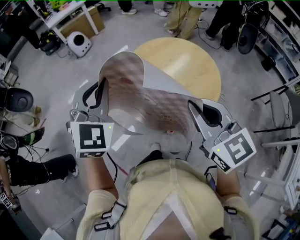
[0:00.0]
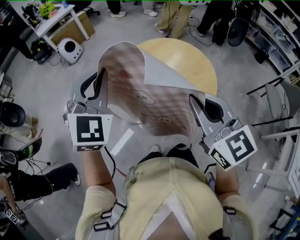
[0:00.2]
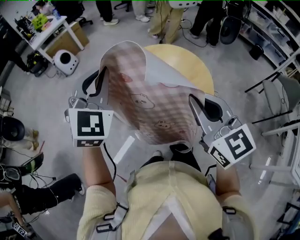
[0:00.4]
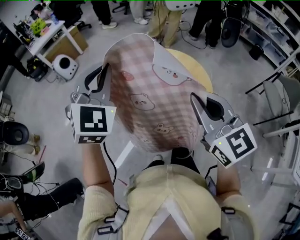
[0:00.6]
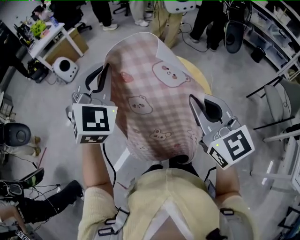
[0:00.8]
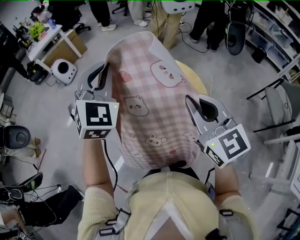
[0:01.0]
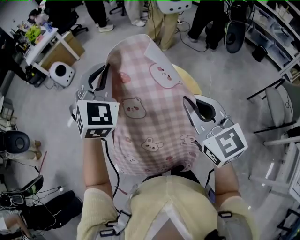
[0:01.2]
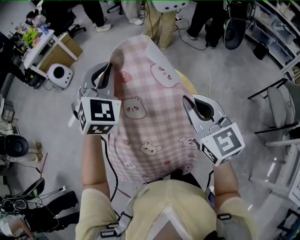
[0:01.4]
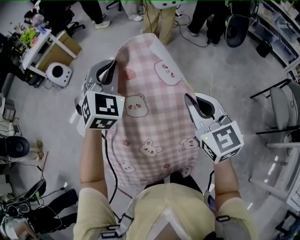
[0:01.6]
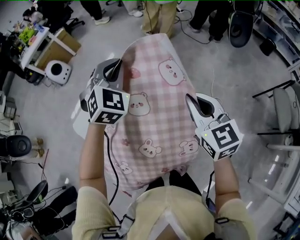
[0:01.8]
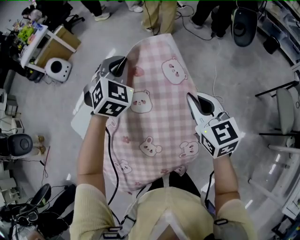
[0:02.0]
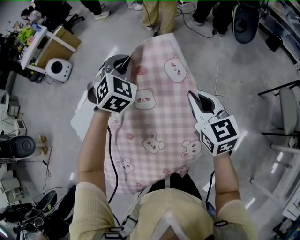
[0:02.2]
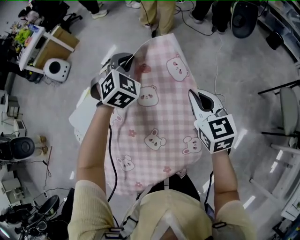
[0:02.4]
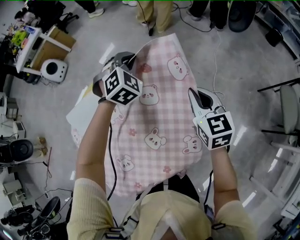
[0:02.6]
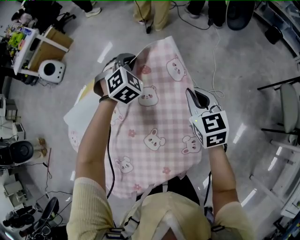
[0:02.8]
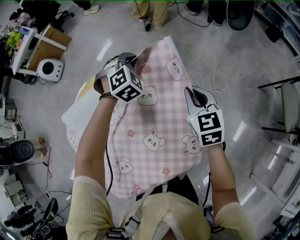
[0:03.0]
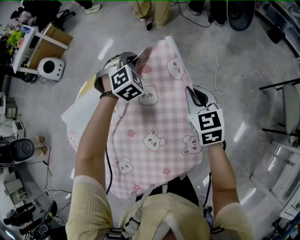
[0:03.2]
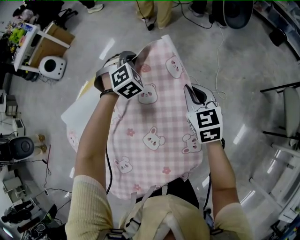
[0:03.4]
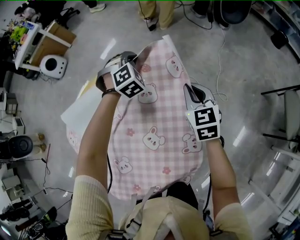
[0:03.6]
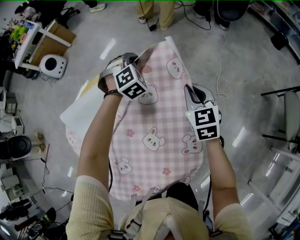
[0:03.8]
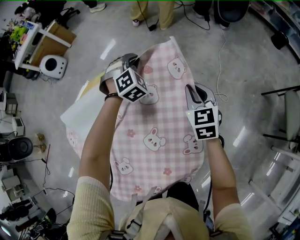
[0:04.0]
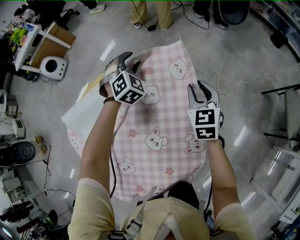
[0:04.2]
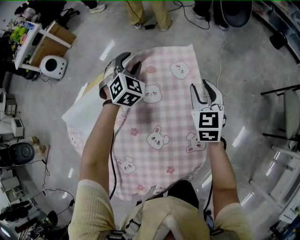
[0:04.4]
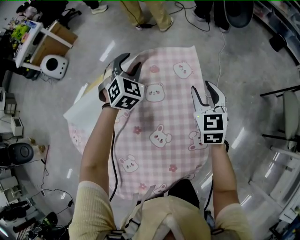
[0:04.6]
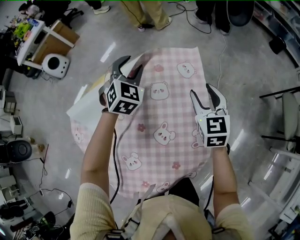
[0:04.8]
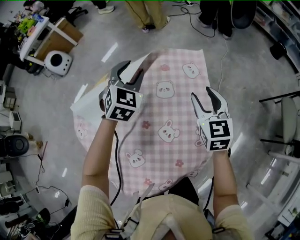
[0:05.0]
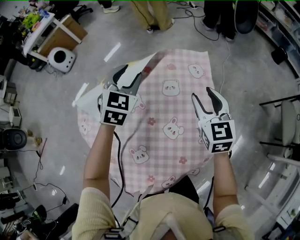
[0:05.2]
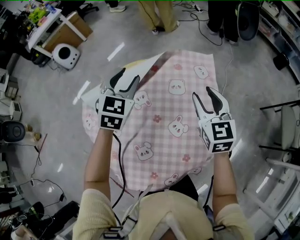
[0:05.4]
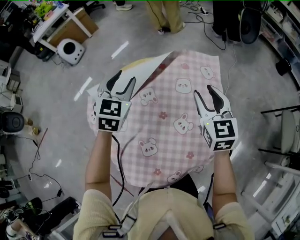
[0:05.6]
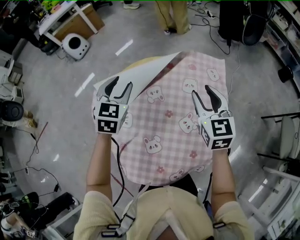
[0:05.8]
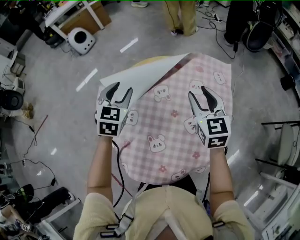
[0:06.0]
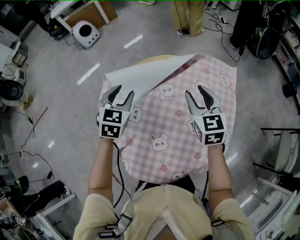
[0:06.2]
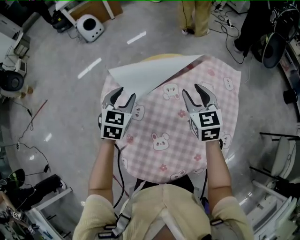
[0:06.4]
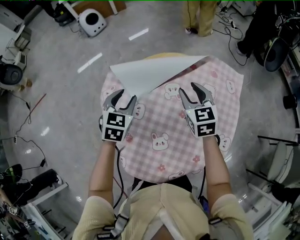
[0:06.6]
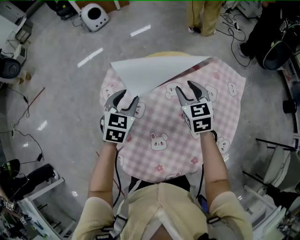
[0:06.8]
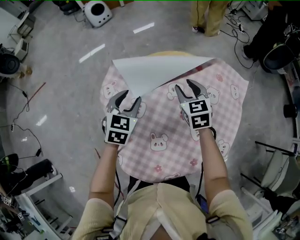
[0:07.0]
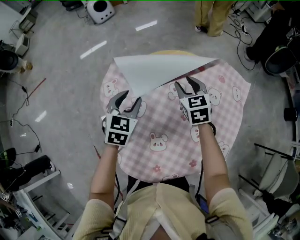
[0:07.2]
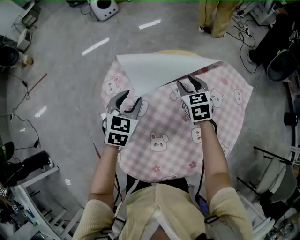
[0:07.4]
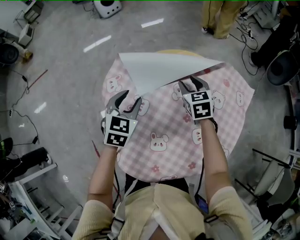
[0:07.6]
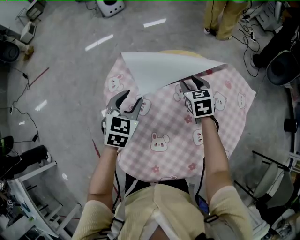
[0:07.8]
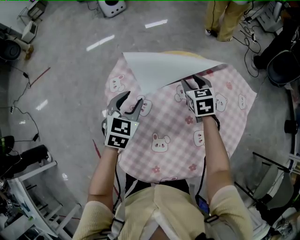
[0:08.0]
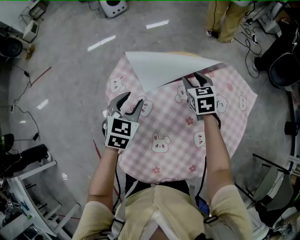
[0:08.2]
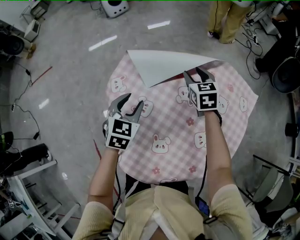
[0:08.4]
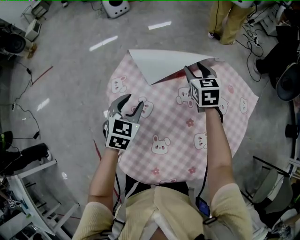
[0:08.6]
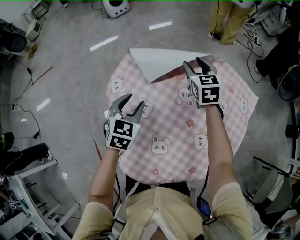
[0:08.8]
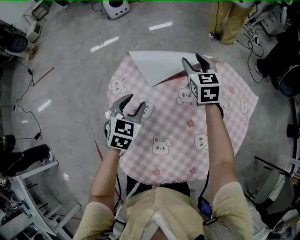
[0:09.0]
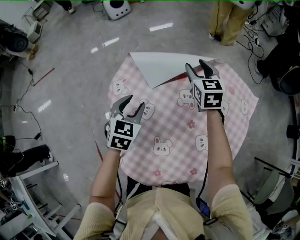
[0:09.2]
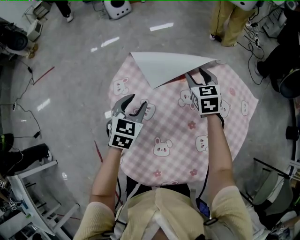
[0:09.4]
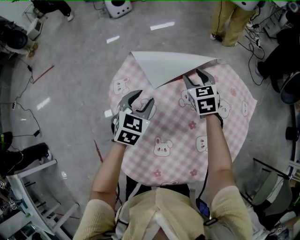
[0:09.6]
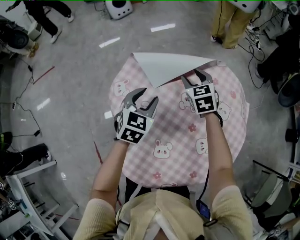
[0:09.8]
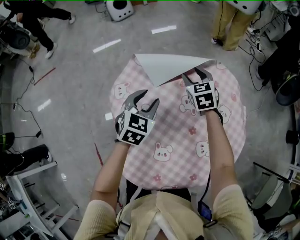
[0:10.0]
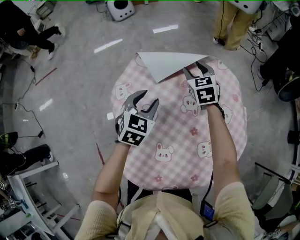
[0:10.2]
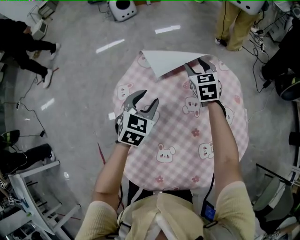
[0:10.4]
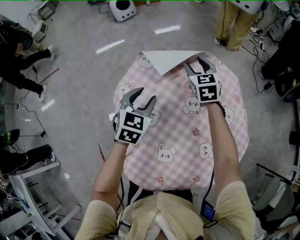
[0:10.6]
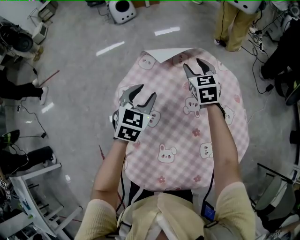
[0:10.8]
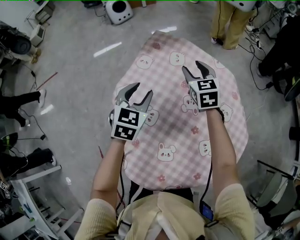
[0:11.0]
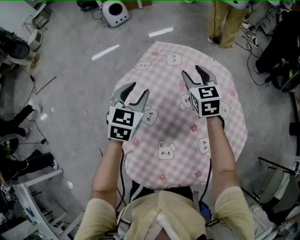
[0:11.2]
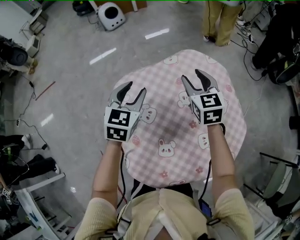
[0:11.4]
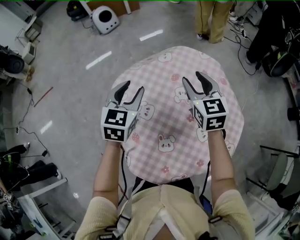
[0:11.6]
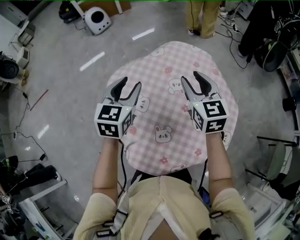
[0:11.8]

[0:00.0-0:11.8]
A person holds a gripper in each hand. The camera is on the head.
0.0 to 1.4 s: The right gripper moves to the right and forward, roughly 30 cm. Meanwhile the left gripper is displaced forward and to the right by approximately 40 cm.
1.4 to 3.0 s: Both grippers travel together downward, to the right and forward, roughly 35 cm. The left gripper angles its fingers downward, by some 30 degrees, while the right gripper rotates some 20 degrees.
3.0 to 4.4 s: The right gripper opens its fingers. The left gripper opens its fingers.
4.4 to 6.0 s: The right gripper moves to the left and upward, about 25 cm, and changes its angle by about 20 degrees. The left gripper heads to the left and backward, covering about 35 cm, and swivels roughly 40 degrees.
6.0 to 7.4 s: The left gripper moves downward and backward, roughly 10 cm. The right gripper goes some 20 cm downward, to the left and forward, and turns by about 30 degrees.
7.4 to 8.8 s: The right gripper is displaced forward by about 10 cm.
8.8 to 10.4 s: The left gripper moves roughly 5 cm. The right gripper ends up about 5 cm from where it was.
10.4 to 11.8 s: The right gripper moves backward and upward, about 25 cm, while the left gripper is displaced upward by approximately 10 cm.

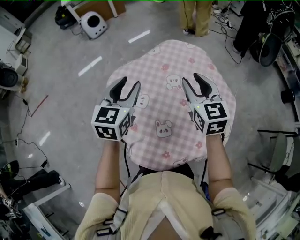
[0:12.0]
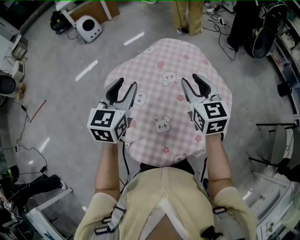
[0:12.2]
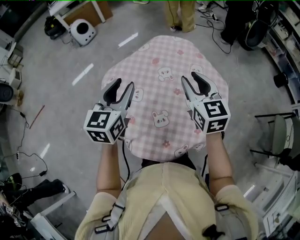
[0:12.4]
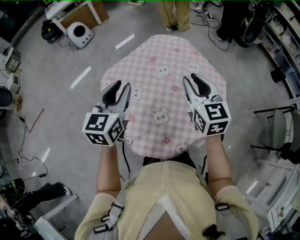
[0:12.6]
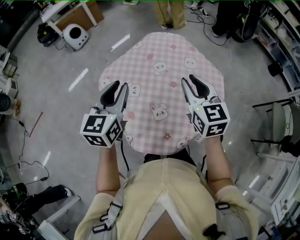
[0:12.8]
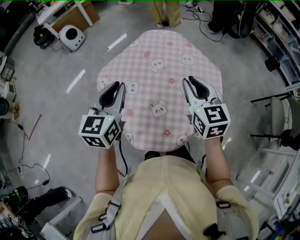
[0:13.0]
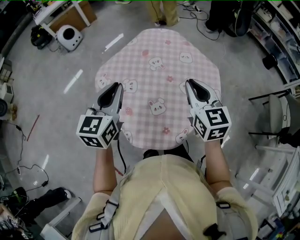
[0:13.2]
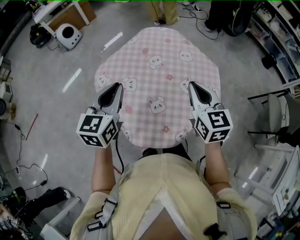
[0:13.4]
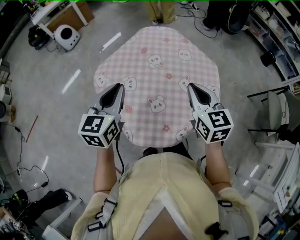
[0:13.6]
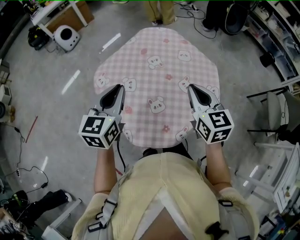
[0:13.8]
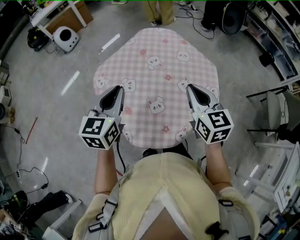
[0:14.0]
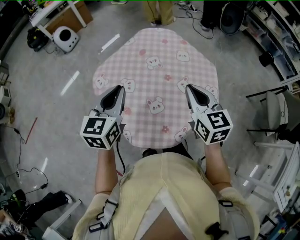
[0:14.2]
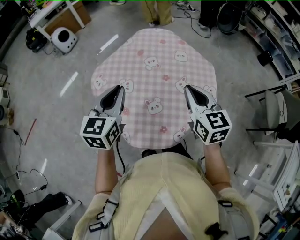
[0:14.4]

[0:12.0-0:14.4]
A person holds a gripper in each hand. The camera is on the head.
12.0 to 13.2 s: The left gripper is displaced backward by roughly 10 cm, and closes its fingers. The right gripper goes approximately 15 cm backward, and closes.
13.2 to 14.4 s: The grippers stay close to where they were, moving slightly.

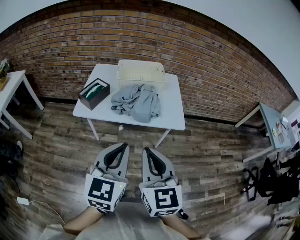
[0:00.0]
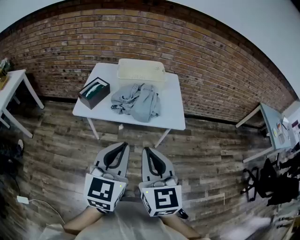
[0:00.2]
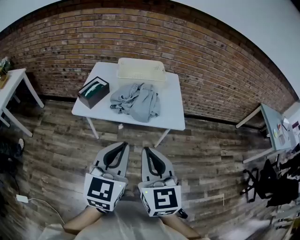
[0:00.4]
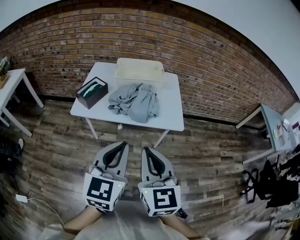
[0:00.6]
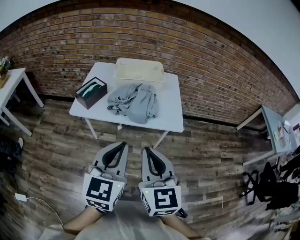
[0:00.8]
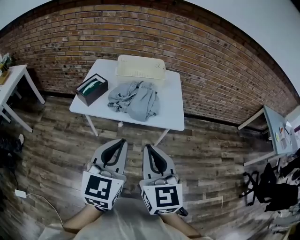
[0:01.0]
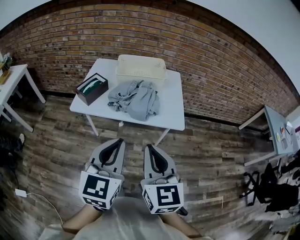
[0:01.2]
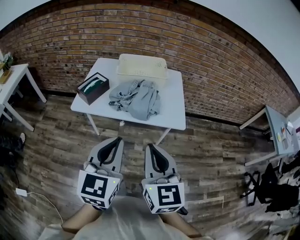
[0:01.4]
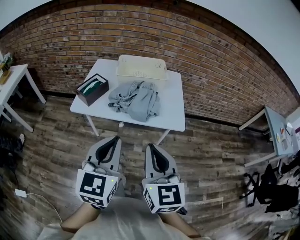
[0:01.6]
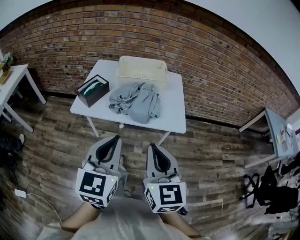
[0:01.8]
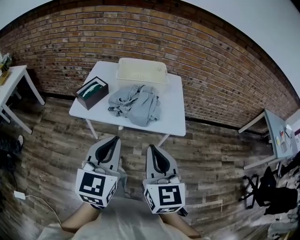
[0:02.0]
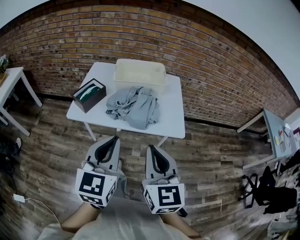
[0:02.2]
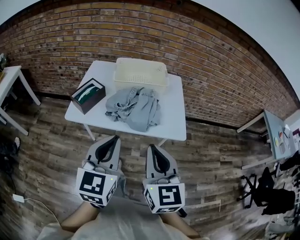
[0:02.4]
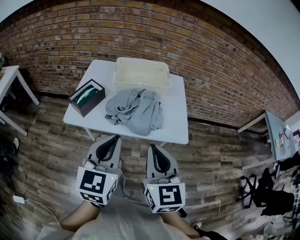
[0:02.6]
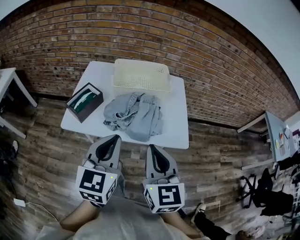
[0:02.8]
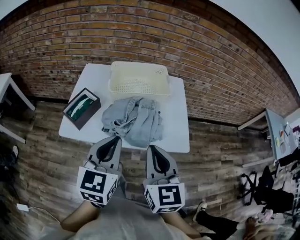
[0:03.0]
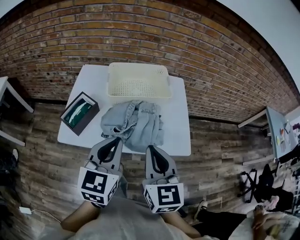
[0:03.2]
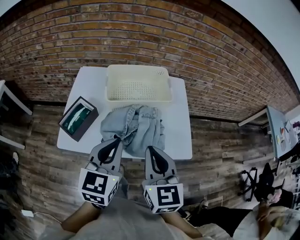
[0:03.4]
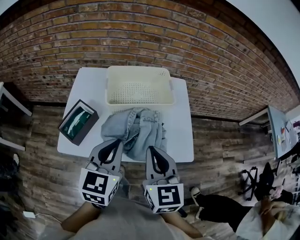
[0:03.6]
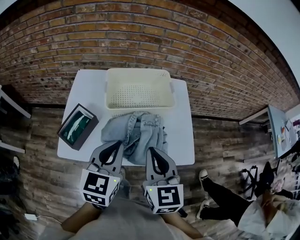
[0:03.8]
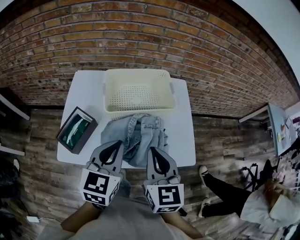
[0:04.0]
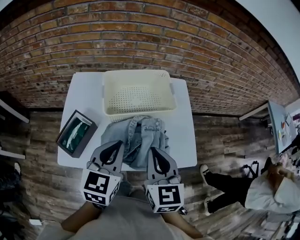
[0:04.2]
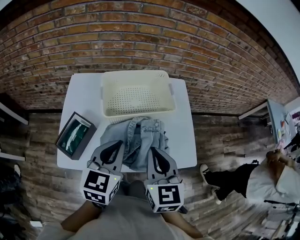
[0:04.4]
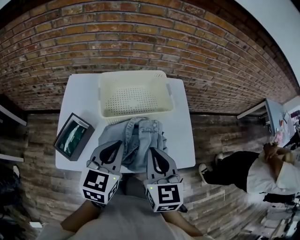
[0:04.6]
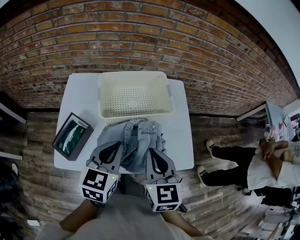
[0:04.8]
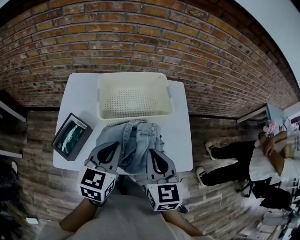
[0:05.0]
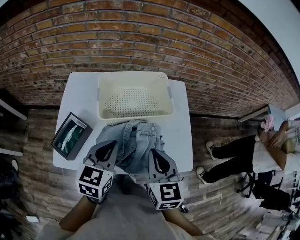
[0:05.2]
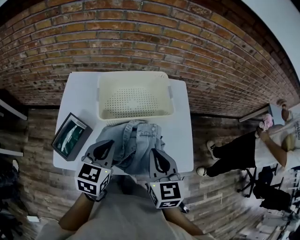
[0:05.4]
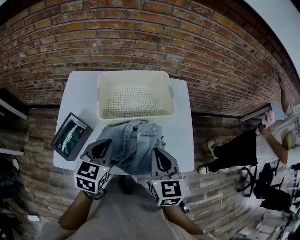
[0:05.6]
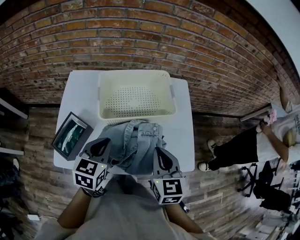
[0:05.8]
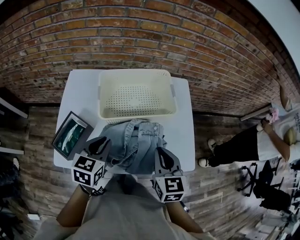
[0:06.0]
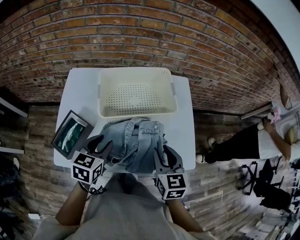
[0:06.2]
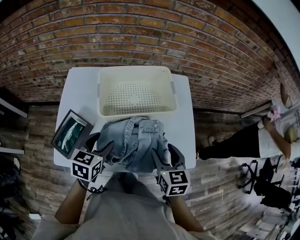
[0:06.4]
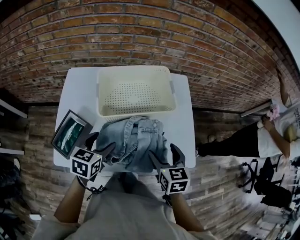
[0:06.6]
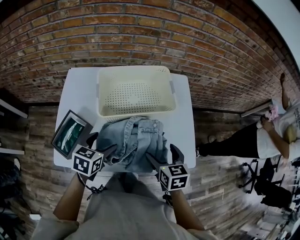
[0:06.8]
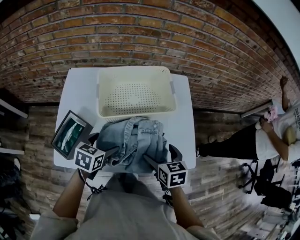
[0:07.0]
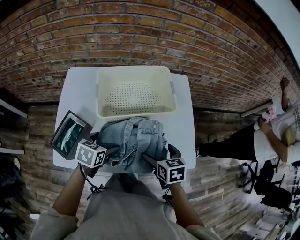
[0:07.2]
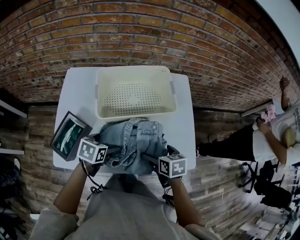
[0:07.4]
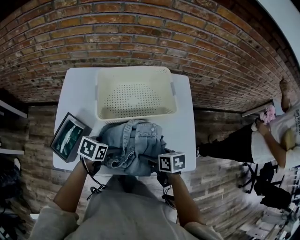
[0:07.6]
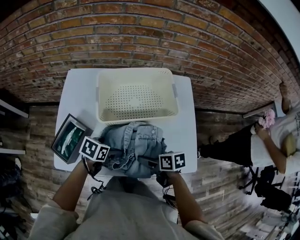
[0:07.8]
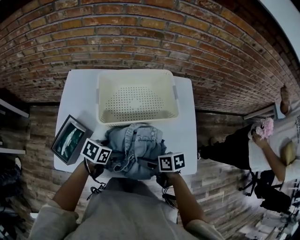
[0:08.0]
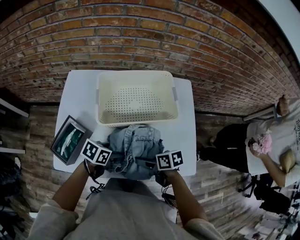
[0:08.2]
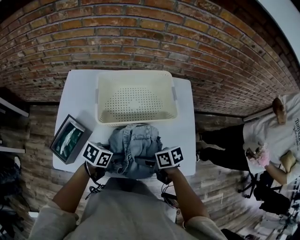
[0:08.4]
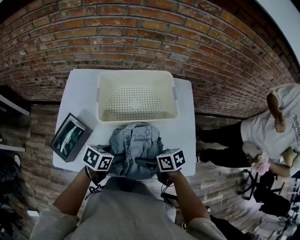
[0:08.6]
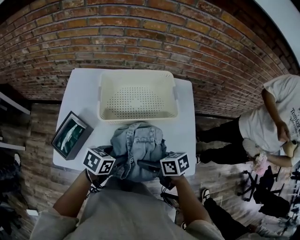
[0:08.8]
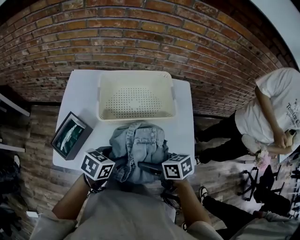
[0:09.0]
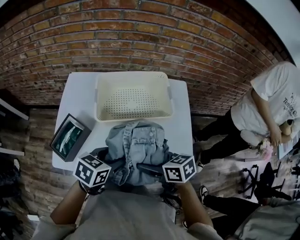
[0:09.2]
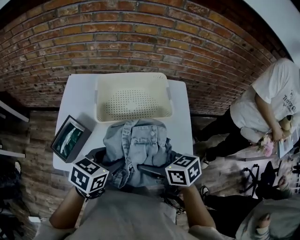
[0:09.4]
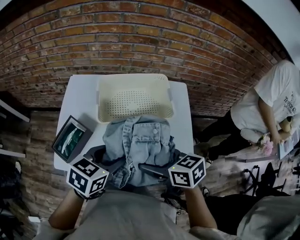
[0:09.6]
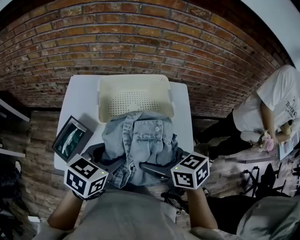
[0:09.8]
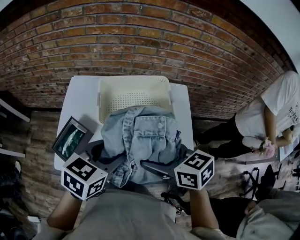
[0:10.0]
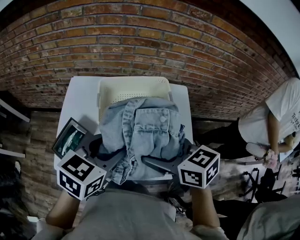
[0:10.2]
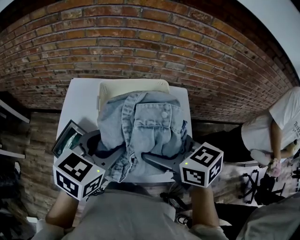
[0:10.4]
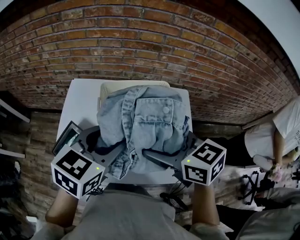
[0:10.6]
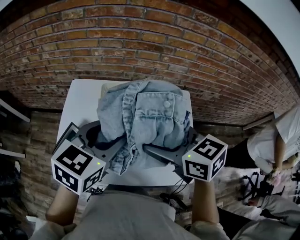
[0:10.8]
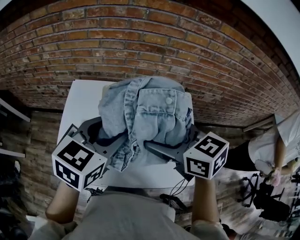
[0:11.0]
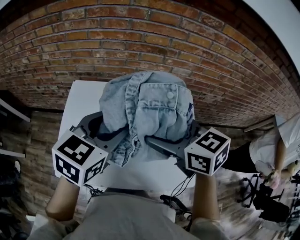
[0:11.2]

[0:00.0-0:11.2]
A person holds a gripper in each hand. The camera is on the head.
0.0 to 1.6 s: The right gripper ends up about 5 cm from where it was.
1.6 to 3.2 s: Both grippers move forward, roughly 25 cm.
3.2 to 4.8 s: Both grippers travel together forward, approximately 10 cm.
4.8 to 6.4 s: The left gripper shifts about 10 cm downward and to the left, and opens, while the right gripper heads downward and to the right, covering roughly 10 cm, and opens up.
6.4 to 8.0 s: The grippers both shift downward by roughly 10 cm. The left gripper swivels some 30 degrees, and opens; the right gripper swivels about 50 degrees, and opens.
8.0 to 9.6 s: Both grippers move upward, approximately 20 cm. The right gripper turns by some 30 degrees. Meanwhile the left gripper changes its angle by some 20 degrees, and closes its fingers.
9.6 to 11.2 s: Both grippers move forward and upward, approximately 20 cm.
